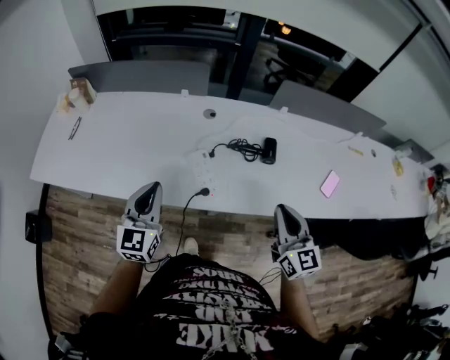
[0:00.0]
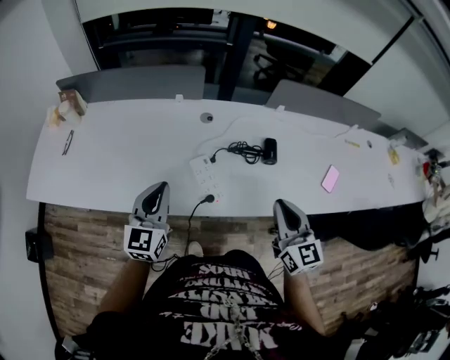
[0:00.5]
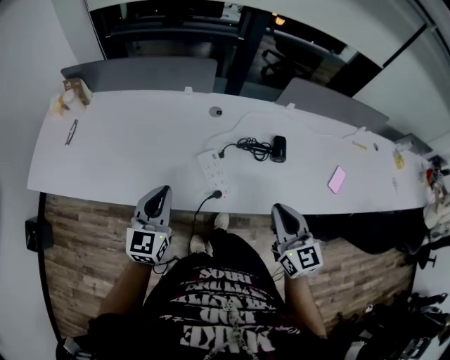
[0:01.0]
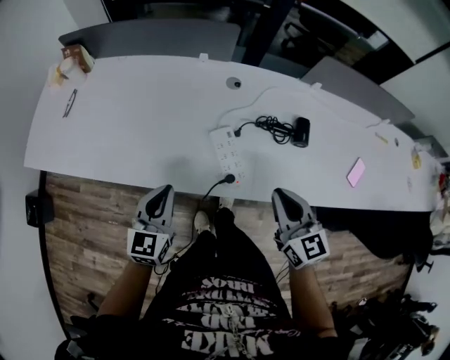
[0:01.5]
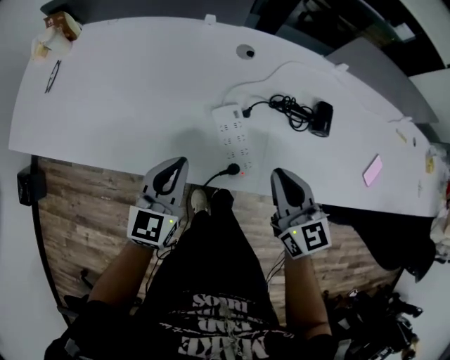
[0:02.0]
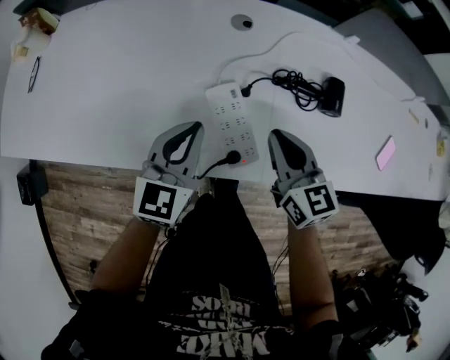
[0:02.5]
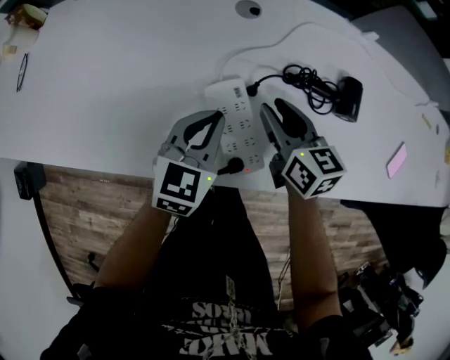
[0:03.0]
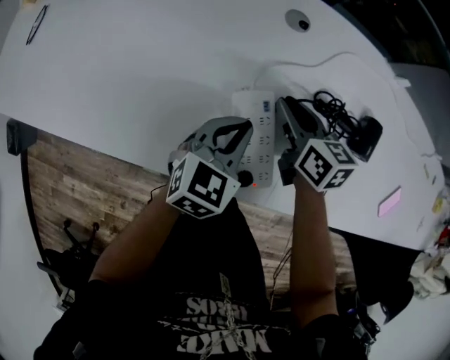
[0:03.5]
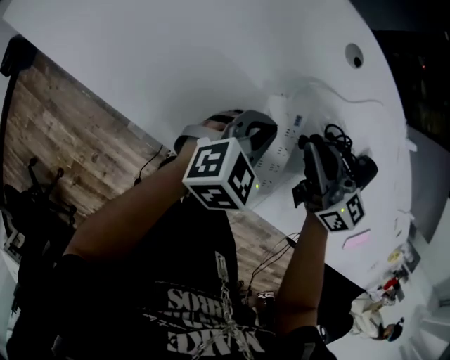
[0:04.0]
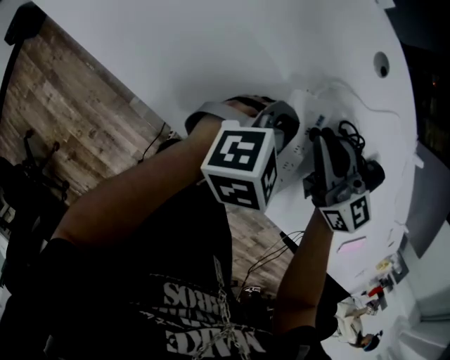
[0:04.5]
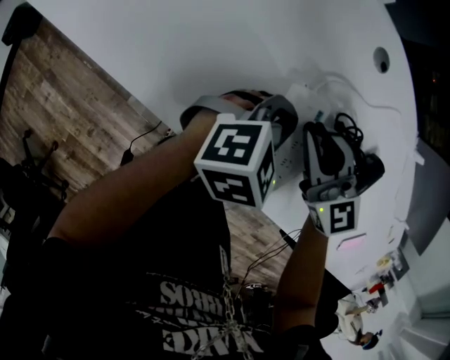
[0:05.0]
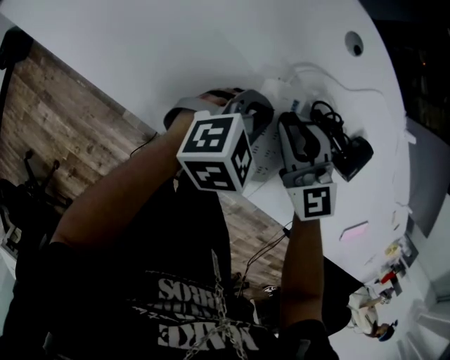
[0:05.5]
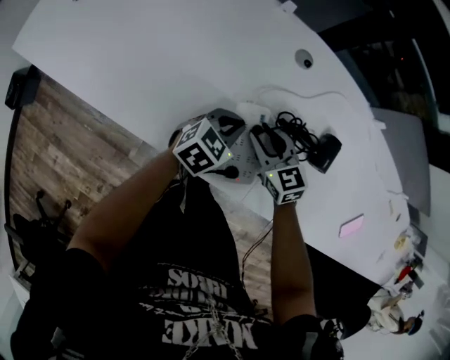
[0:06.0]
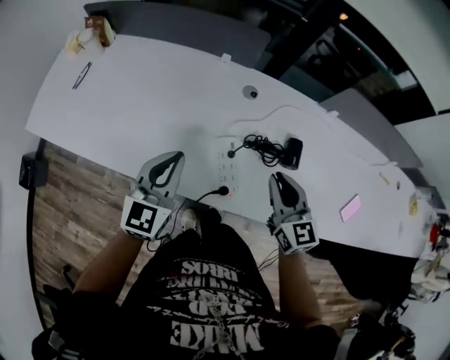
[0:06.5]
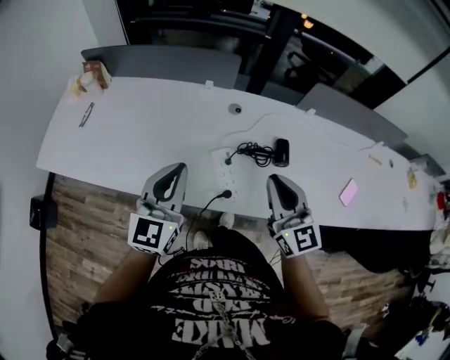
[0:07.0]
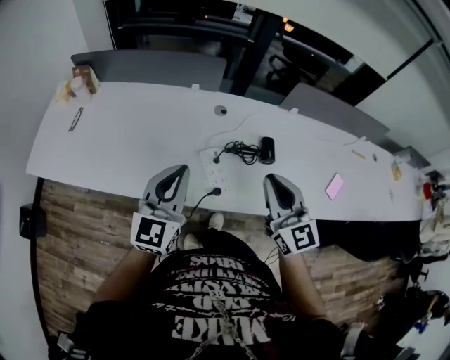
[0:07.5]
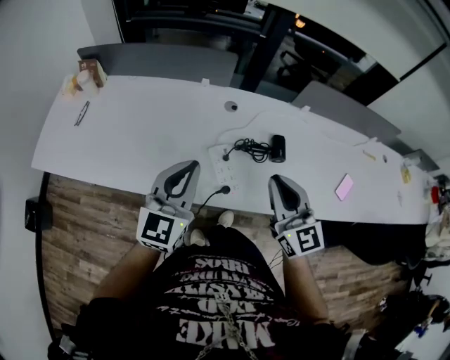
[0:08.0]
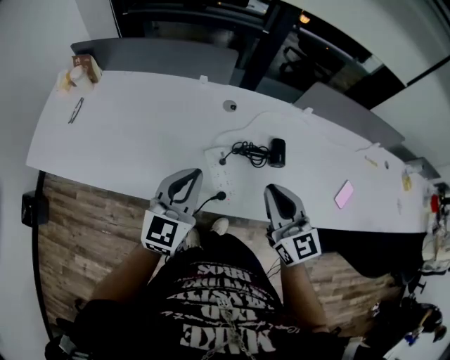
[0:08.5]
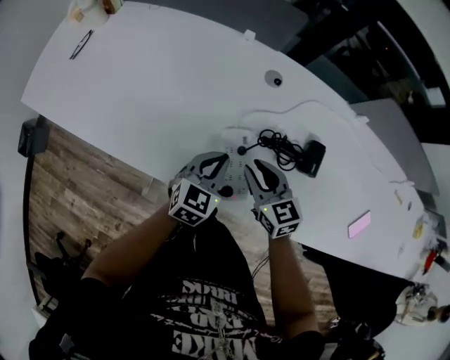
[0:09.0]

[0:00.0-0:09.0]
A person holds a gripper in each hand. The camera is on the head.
0.0 to 2.0 s: The right gripper heads downward, to the left and forward, covering about 20 cm. The left gripper moves downward and forward, approximately 15 cm.
2.0 to 4.5 s: The right gripper shifts roughly 20 cm forward, downward and to the left, and rotates roughly 40 degrees, while the left gripper goes roughly 20 cm downward, to the right and forward, and rotates roughly 30 degrees.
4.5 to 7.0 s: The left gripper moves upward, about 35 cm, and tilts its fingers about 40 degrees upward. The right gripper travels upward and backward by some 30 cm, and swivels approximately 50 degrees.
7.0 to 9.0 s: The grippers both shift downward by some 25 cm. The right gripper turns by approximately 40 degrees. The left gripper changes its angle by roughly 30 degrees.

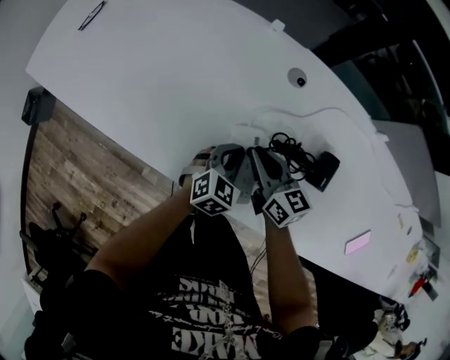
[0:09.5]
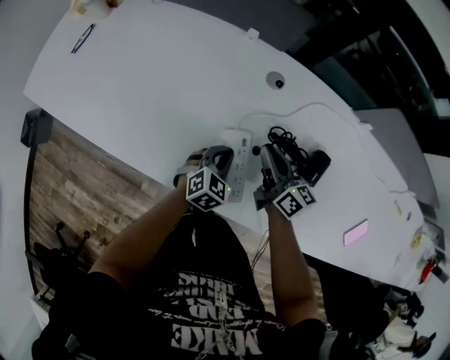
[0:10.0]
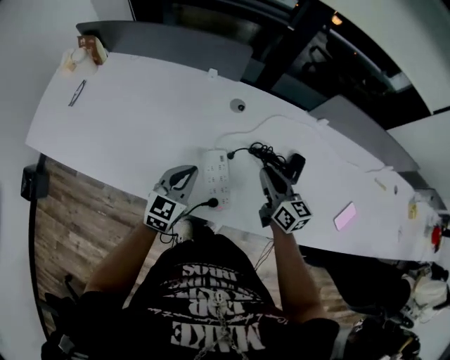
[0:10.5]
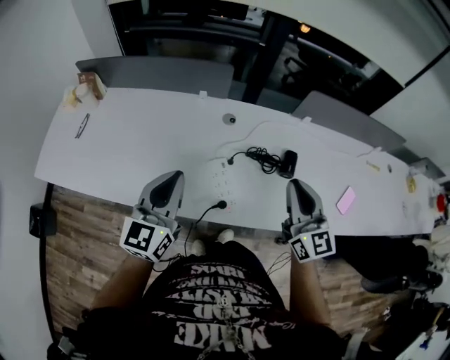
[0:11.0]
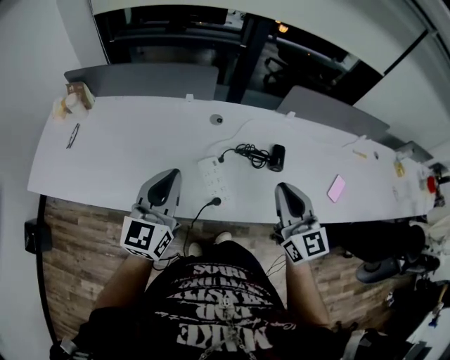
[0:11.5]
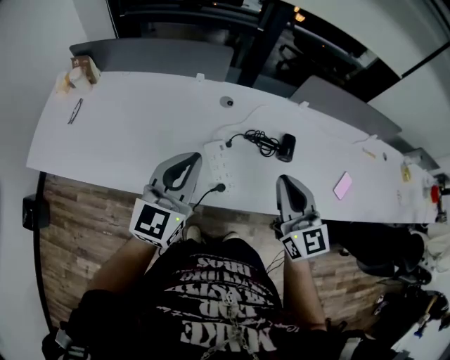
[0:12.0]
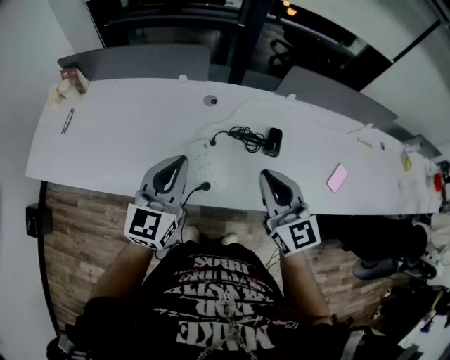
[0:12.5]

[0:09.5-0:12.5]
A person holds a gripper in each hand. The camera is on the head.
9.5 to 11.0 s: The left gripper shifts about 35 cm upward, and points its fingers roughly 40 degrees further upward. The right gripper goes some 35 cm upward, backward and to the right, and swivels about 50 degrees.
11.0 to 12.5 s: The left gripper shifts about 5 cm to the right.

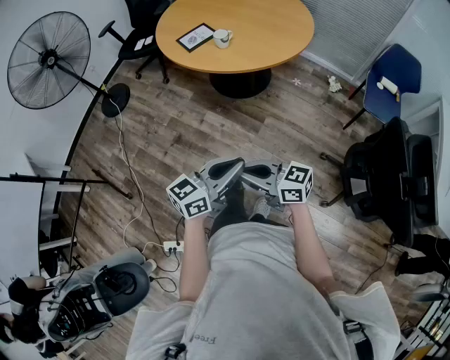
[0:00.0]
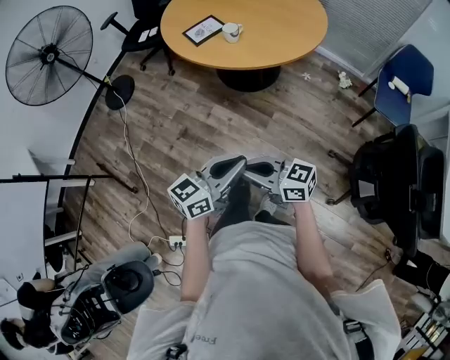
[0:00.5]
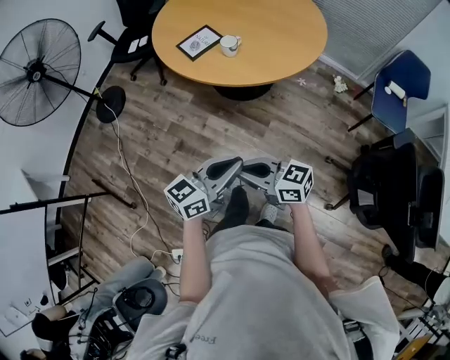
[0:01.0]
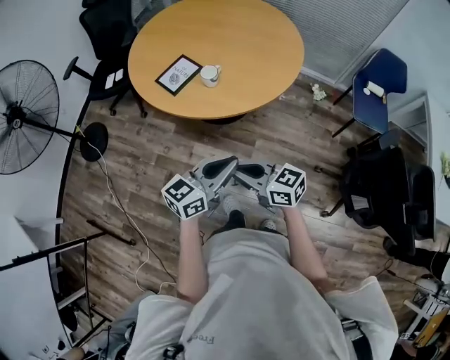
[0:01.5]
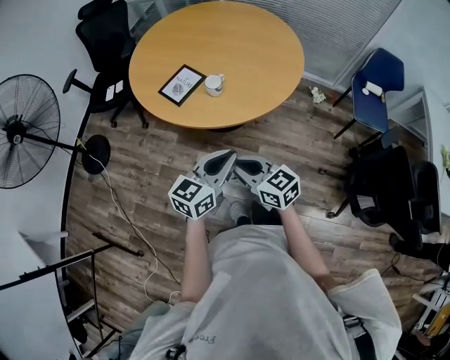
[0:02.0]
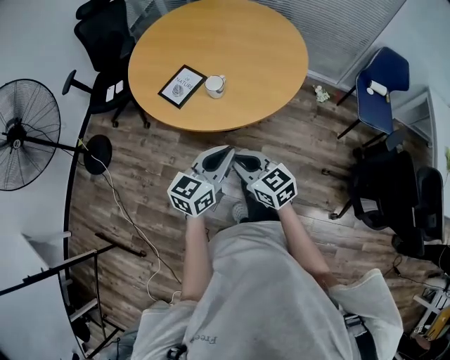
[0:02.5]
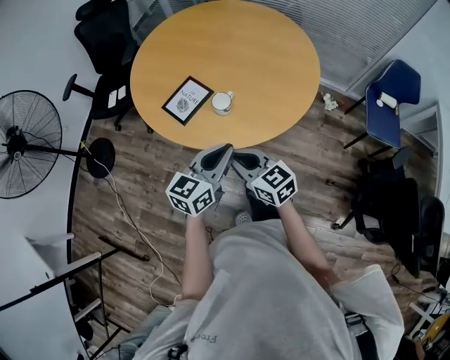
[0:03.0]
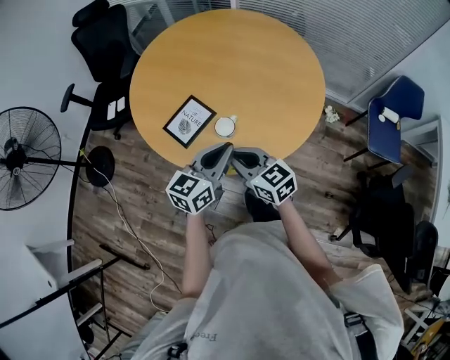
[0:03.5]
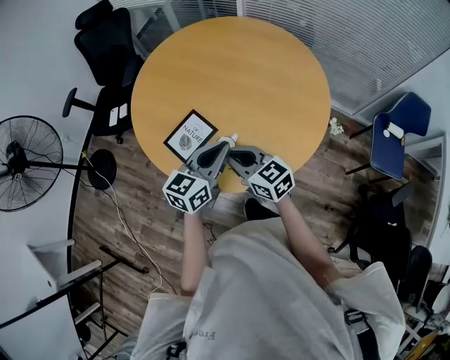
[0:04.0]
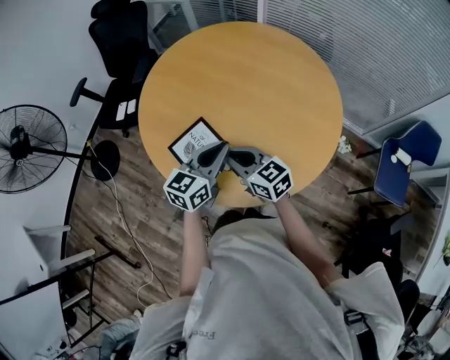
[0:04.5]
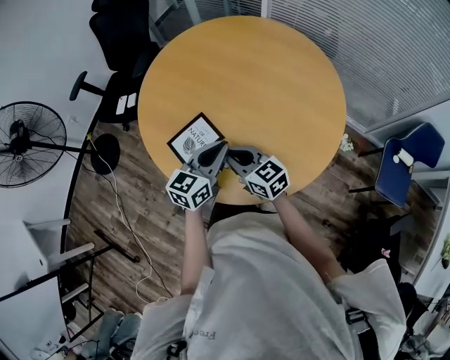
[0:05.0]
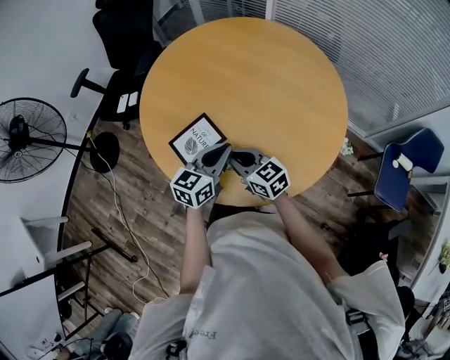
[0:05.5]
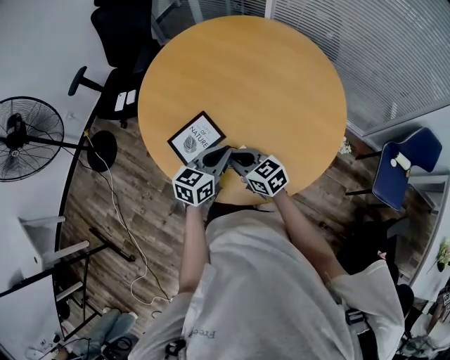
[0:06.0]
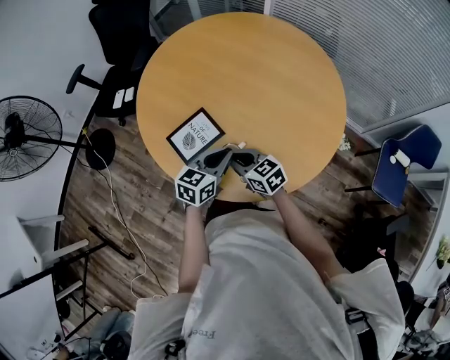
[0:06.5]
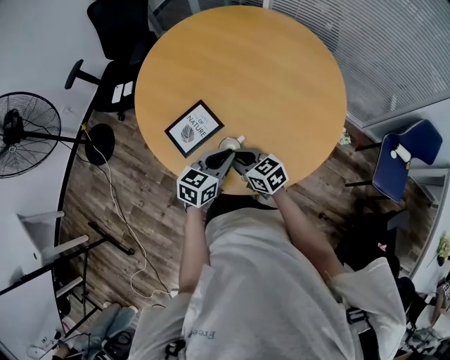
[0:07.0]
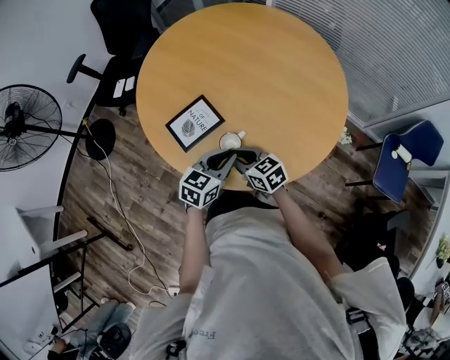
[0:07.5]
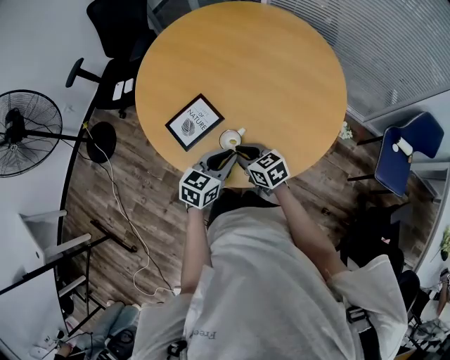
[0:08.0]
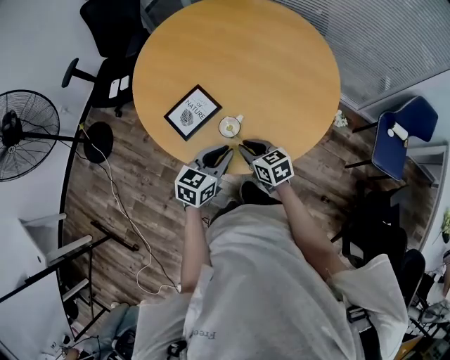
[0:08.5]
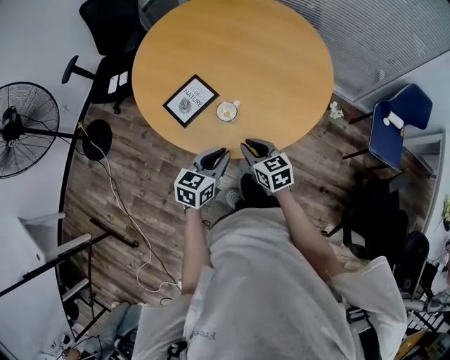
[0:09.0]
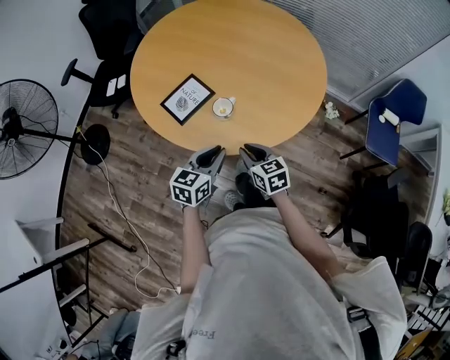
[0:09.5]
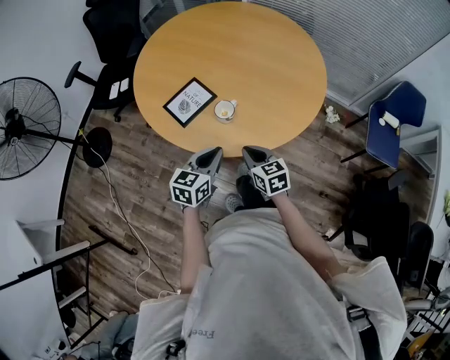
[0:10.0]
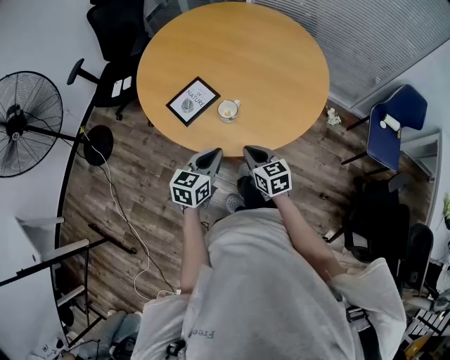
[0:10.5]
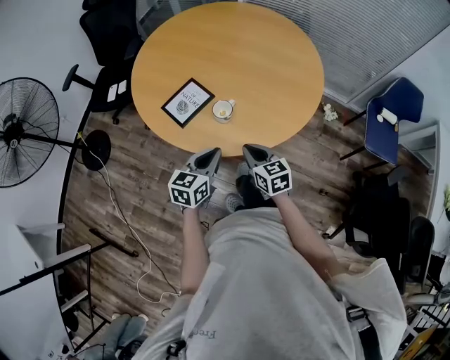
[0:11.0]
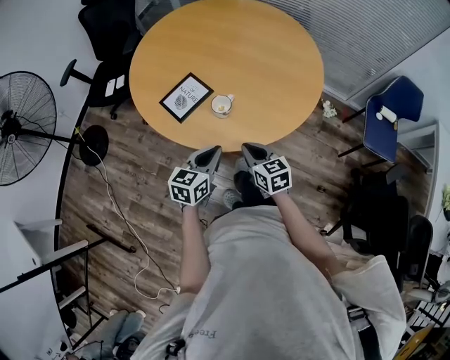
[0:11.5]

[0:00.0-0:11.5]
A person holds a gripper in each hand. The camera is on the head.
0.0 to 2.0 s: The grippers both shift forward by roughly 35 cm. The right gripper rotates roughly 30 degrees.
2.0 to 4.0 s: The two grippers go some 35 cm forward.
4.0 to 6.0 s: Both grippers travel together downward and forward, about 10 cm.
6.0 to 7.5 s: The right gripper ends up about 5 cm from where it was. The left gripper is displaced backward by some 5 cm.
7.5 to 9.5 s: Both grippers travel together backward, approximately 15 cm. The right gripper turns by some 20 degrees.
9.5 to 11.5 s: The grippers make only small movements.

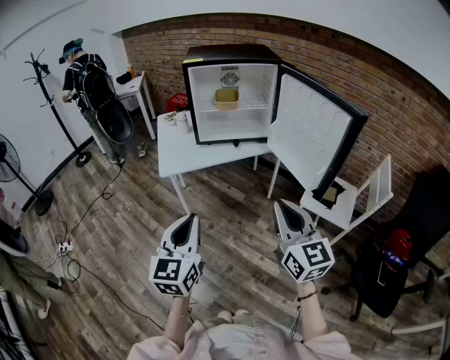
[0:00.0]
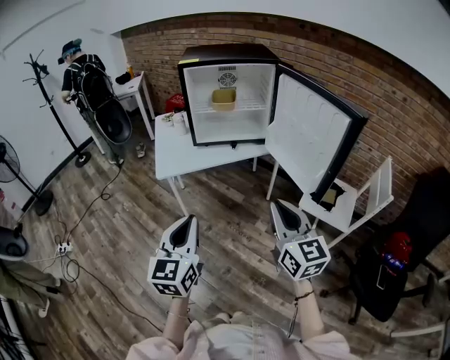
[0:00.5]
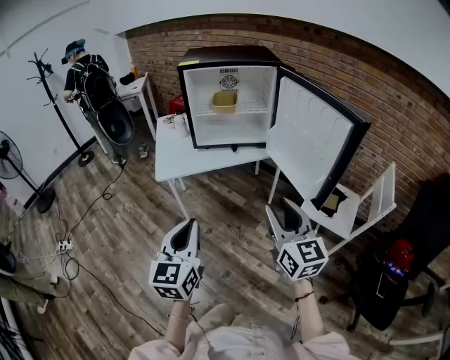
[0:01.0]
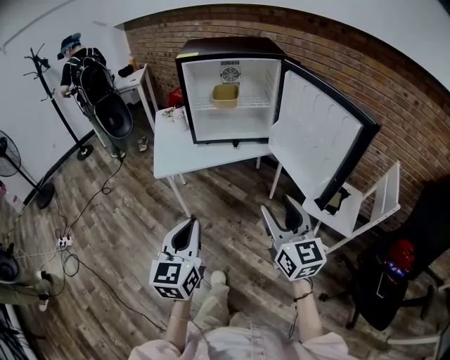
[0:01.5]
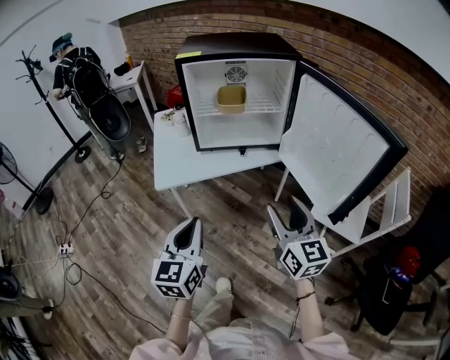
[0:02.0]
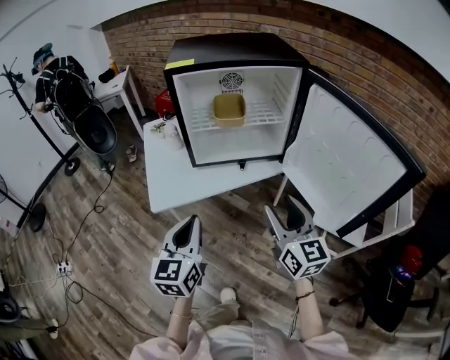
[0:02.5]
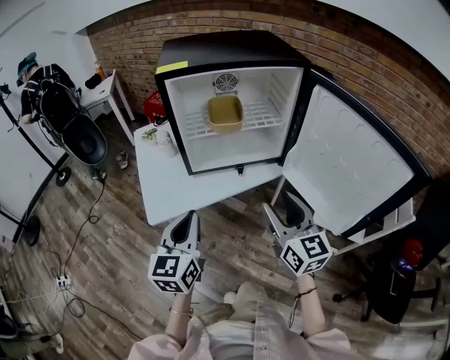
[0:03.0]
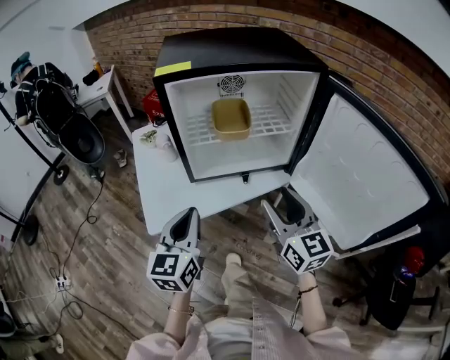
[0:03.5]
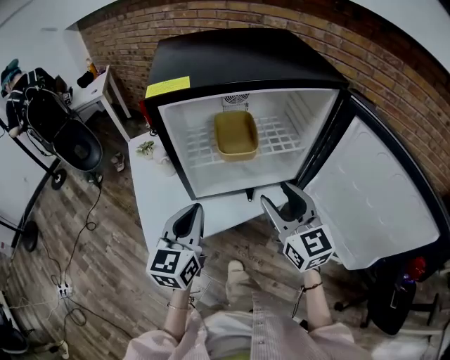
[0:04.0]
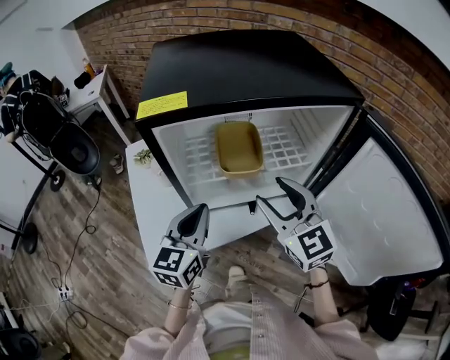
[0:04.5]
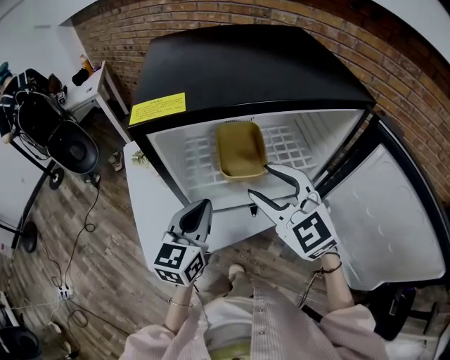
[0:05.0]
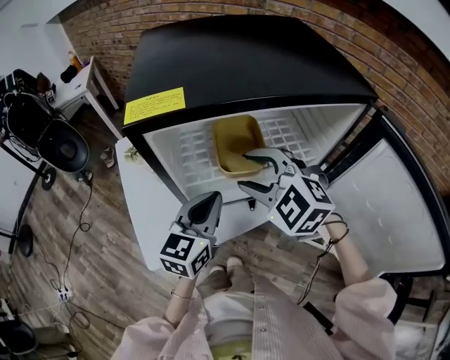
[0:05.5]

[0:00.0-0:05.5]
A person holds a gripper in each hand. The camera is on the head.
0.0 to 2.0 s: Both grippers move forward, approximately 15 cm. The right gripper opens its fingers.
2.0 to 3.5 s: The two grippers go roughly 20 cm forward.
3.5 to 5.5 s: The left gripper moves forward, roughly 20 cm. Meanwhile the right gripper moves forward and to the left, some 20 cm, and tips its fingers downward by approximately 30 degrees.
